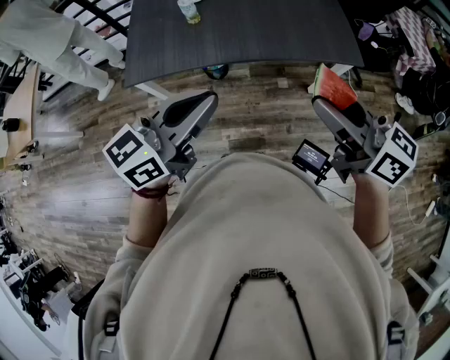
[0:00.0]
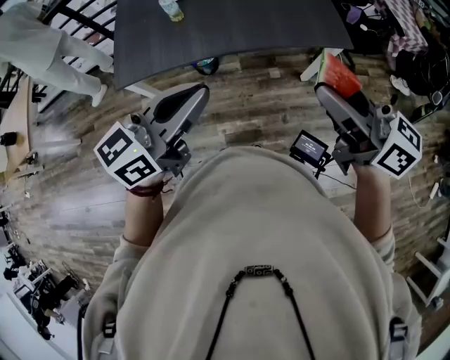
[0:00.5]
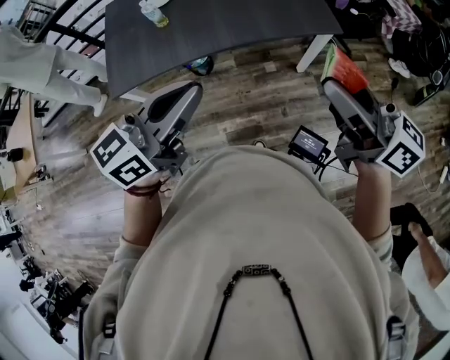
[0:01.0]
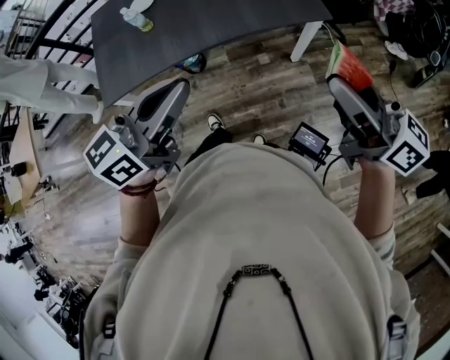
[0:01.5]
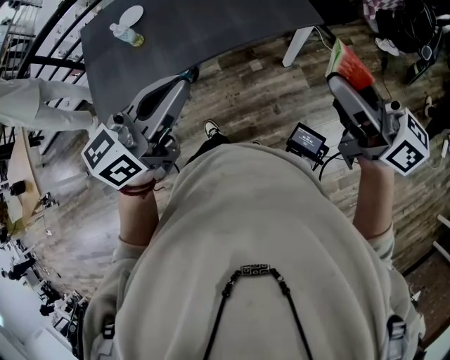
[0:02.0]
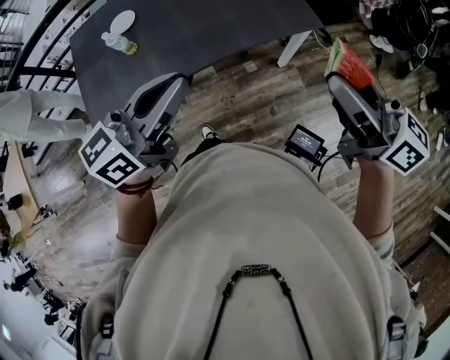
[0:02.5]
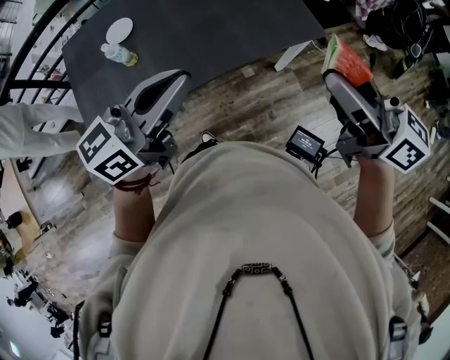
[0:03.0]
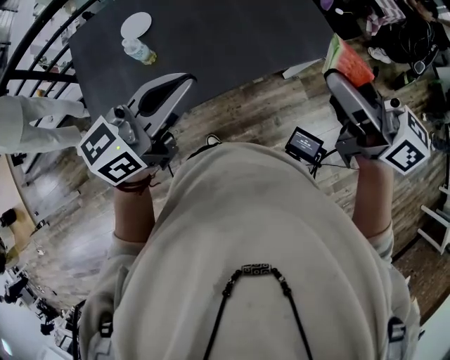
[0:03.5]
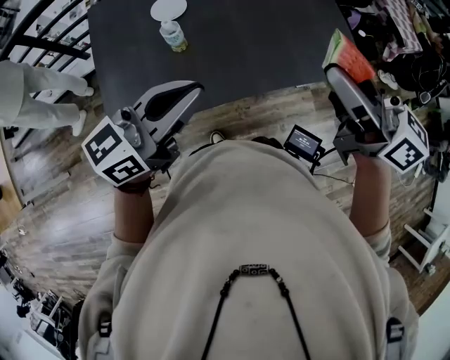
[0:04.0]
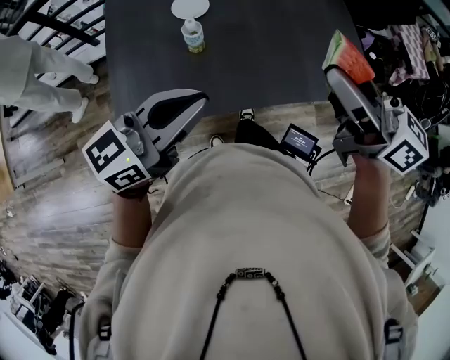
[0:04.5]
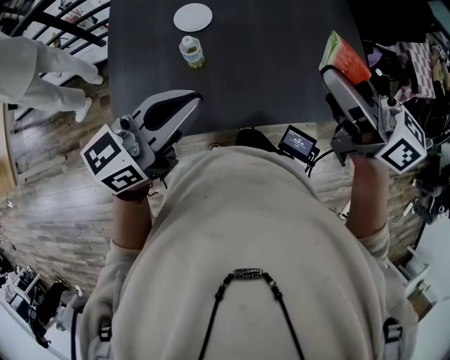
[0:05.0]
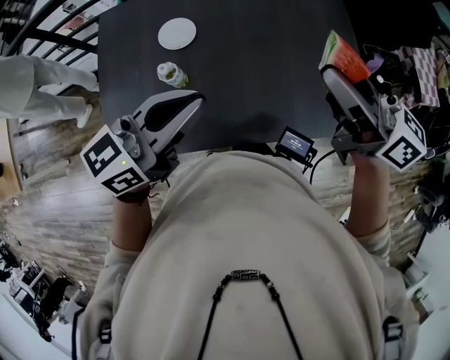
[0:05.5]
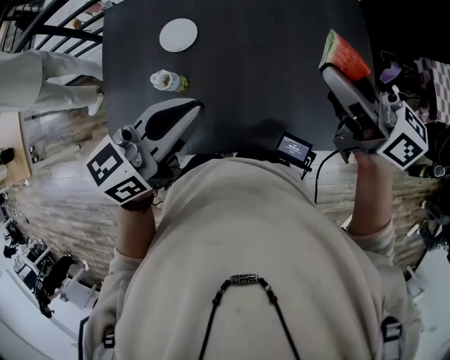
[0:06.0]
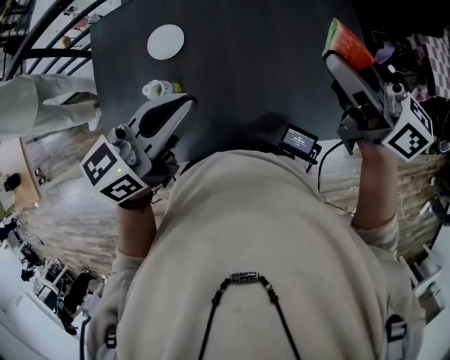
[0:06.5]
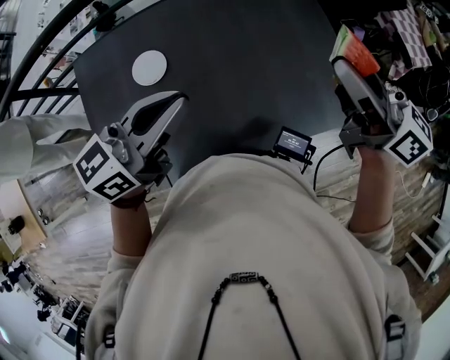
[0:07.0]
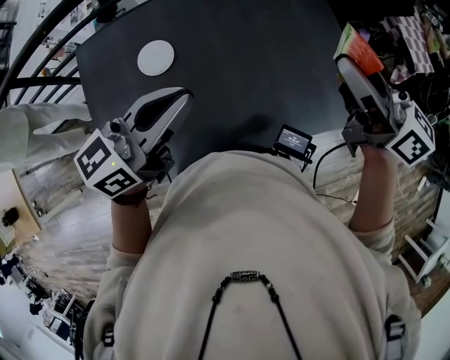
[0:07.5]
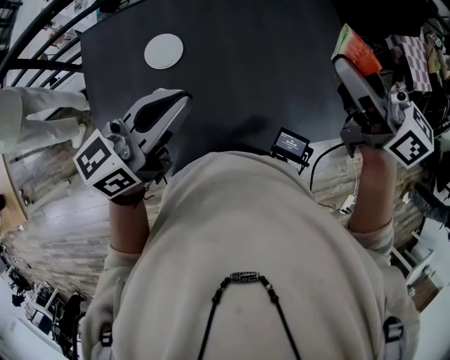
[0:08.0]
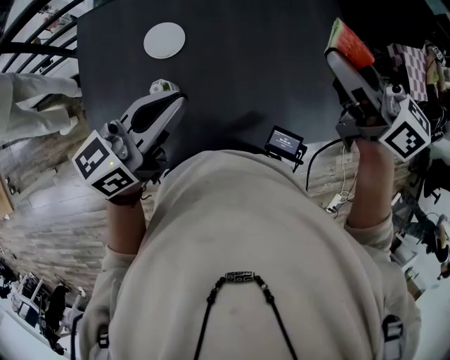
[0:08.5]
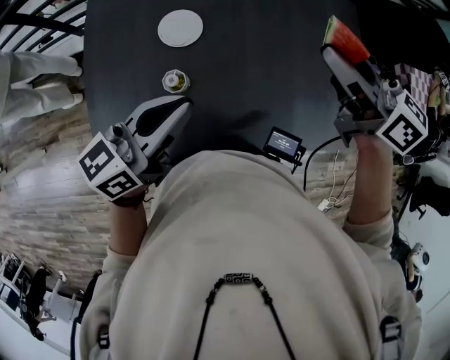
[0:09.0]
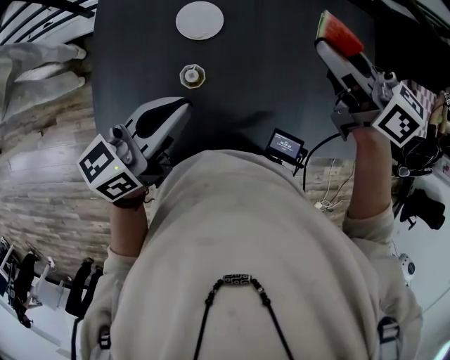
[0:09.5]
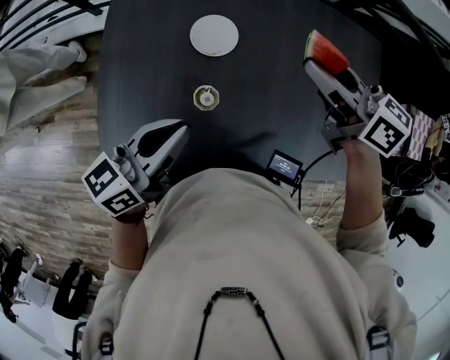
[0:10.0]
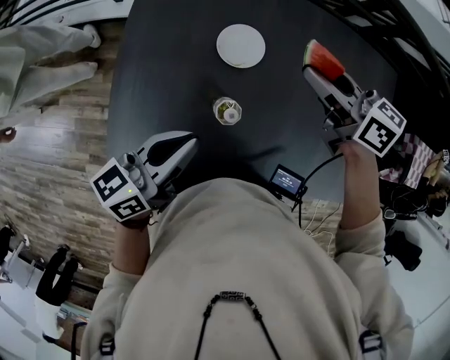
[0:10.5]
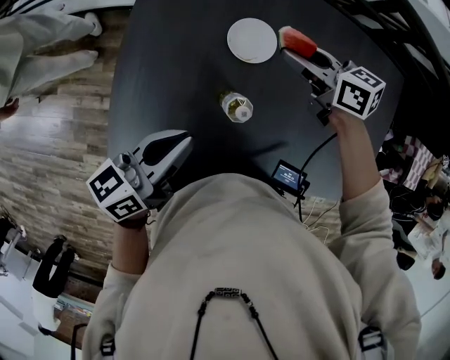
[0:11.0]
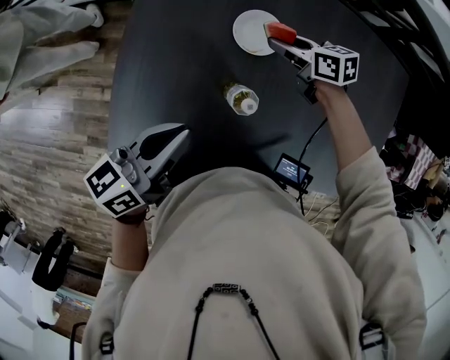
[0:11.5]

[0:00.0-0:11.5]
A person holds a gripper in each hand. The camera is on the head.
0:00.0 to 0:02.0: The right gripper is displaced to the right by some 10 cm; the left gripper travels forward and to the right by about 10 cm.
0:02.0 to 0:04.0: The grippers both shift to the left and forward by roughly 20 cm.
0:04.0 to 0:06.0: The right gripper moves forward, some 20 cm; the left gripper is displaced forward and to the right by approximately 15 cm.
0:06.0 to 0:07.5: The left gripper ends up some 5 cm from where it was.
0:07.5 to 0:09.5: The left gripper heads to the left and downward, covering about 10 cm, and swivels about 20 degrees, while the right gripper travels to the left, downward and forward by roughly 20 cm, and changes its angle by about 30 degrees.
0:09.5 to 0:11.5: The left gripper shifts approximately 10 cm to the left and downward. Meanwhile the right gripper heads downward and to the left, covering approximately 30 cm, and turns by some 30 degrees.

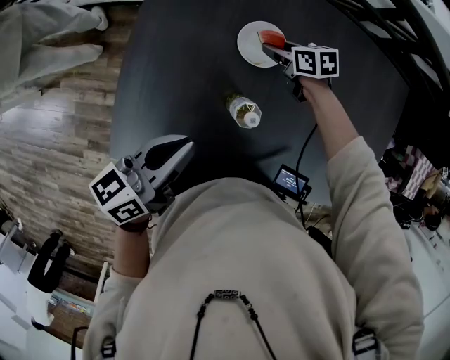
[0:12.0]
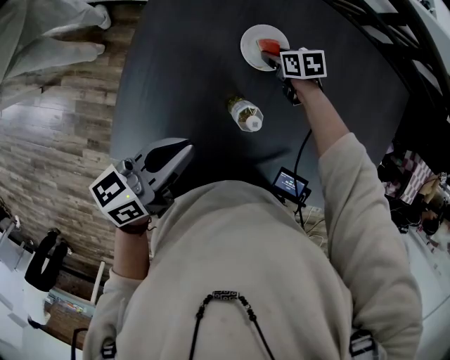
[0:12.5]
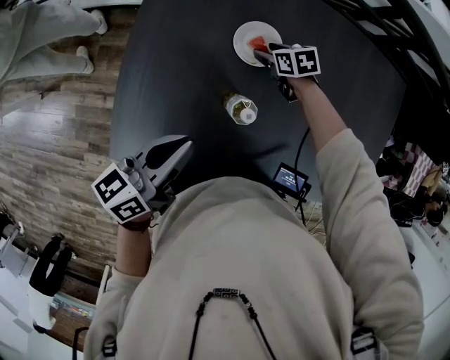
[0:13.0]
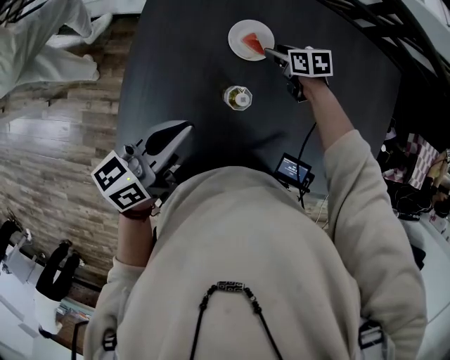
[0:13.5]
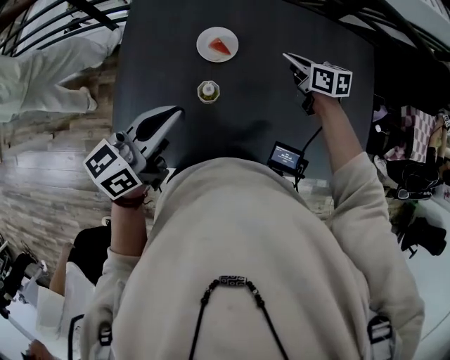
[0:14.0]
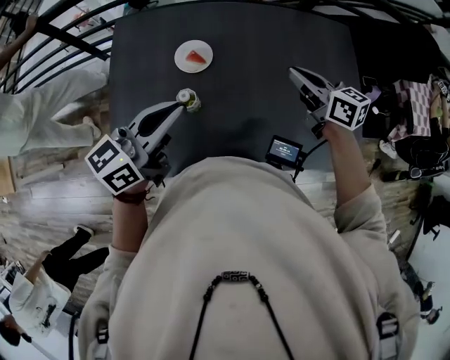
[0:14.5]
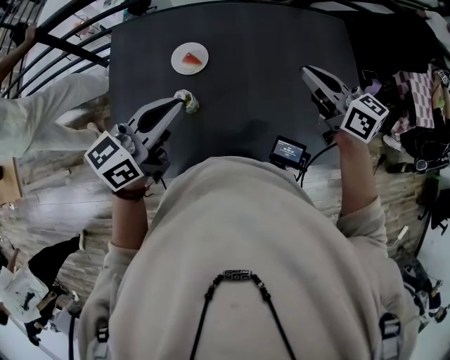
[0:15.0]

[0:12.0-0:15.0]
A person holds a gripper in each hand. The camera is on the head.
0:12.0 to 0:13.5: The right gripper changes place by some 5 cm.
0:13.5 to 0:15.0: The right gripper goes roughly 35 cm upward, to the right and backward, tips its fingers upward by approximately 40 degrees, and closes, while the left gripper shifts some 15 cm to the right and upward, and turns by some 20 degrees.

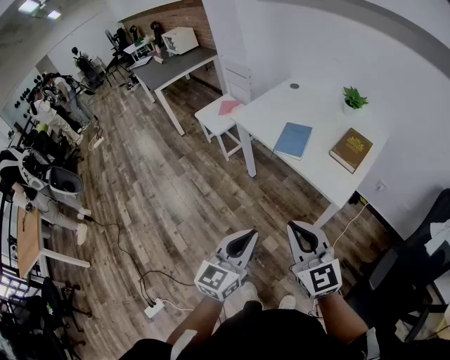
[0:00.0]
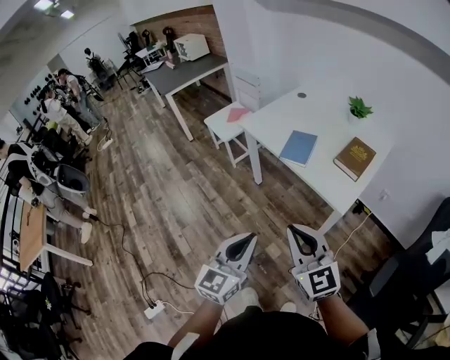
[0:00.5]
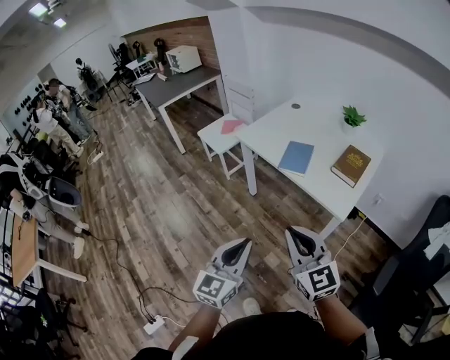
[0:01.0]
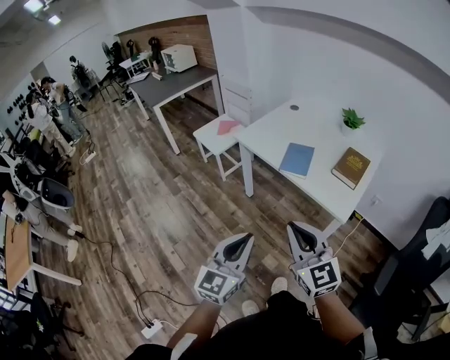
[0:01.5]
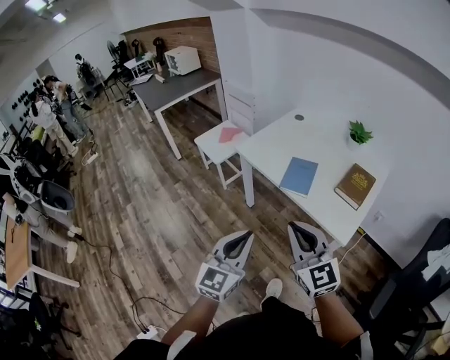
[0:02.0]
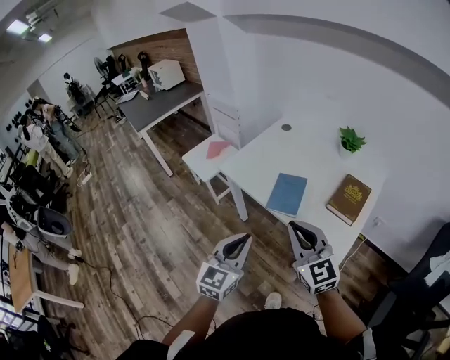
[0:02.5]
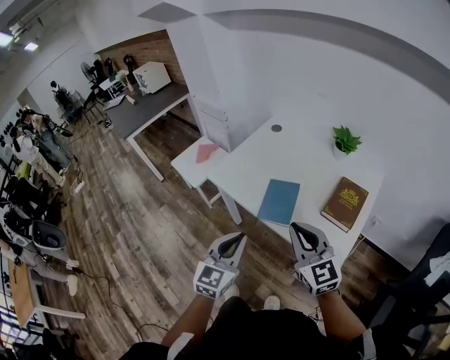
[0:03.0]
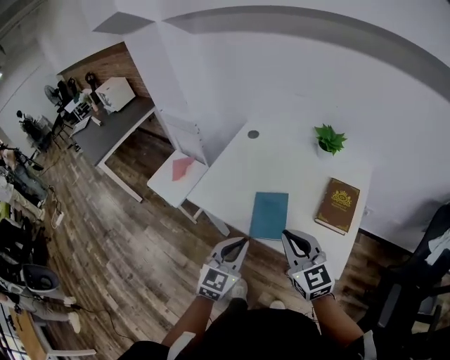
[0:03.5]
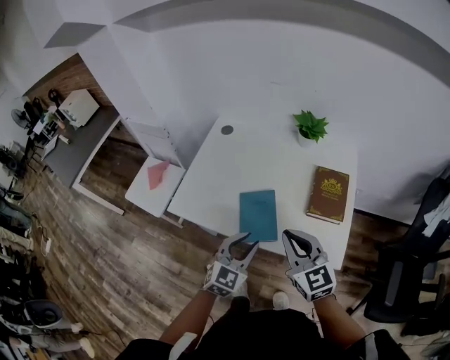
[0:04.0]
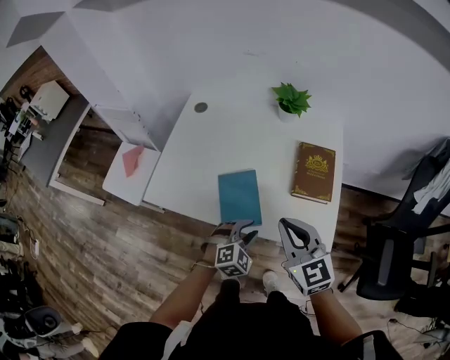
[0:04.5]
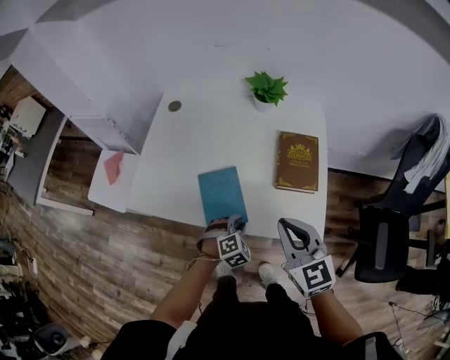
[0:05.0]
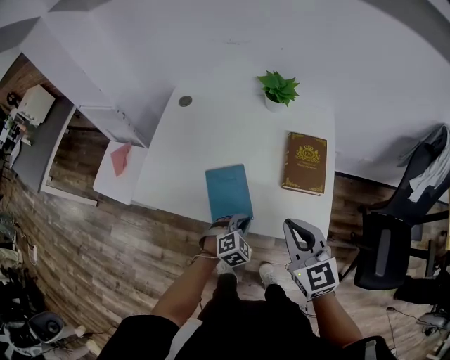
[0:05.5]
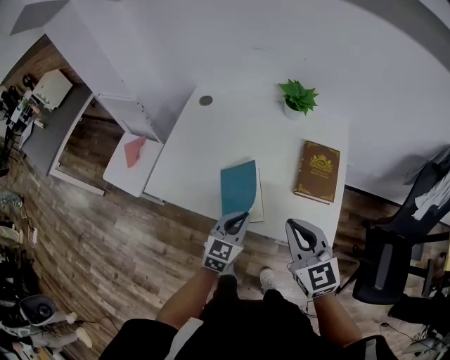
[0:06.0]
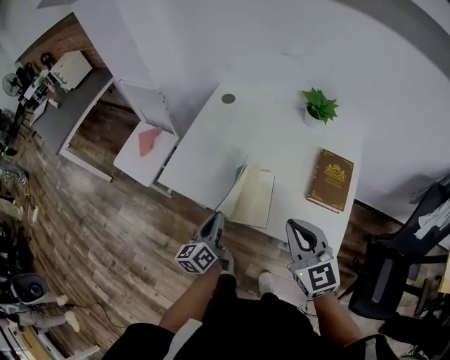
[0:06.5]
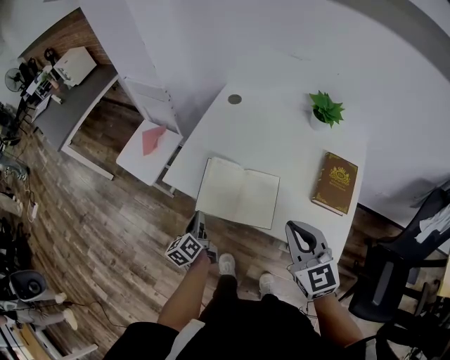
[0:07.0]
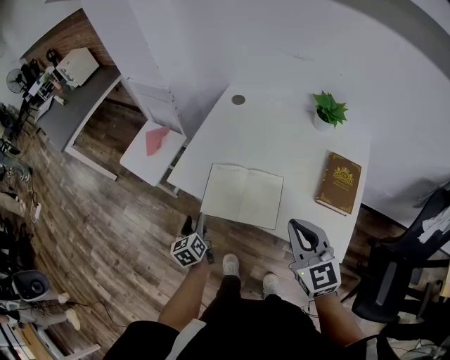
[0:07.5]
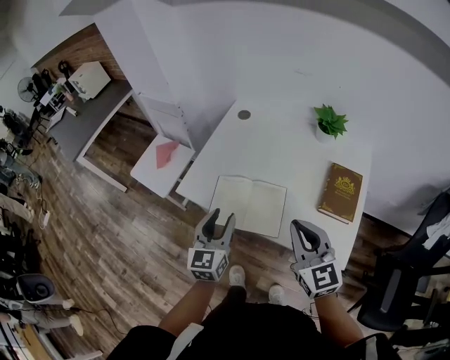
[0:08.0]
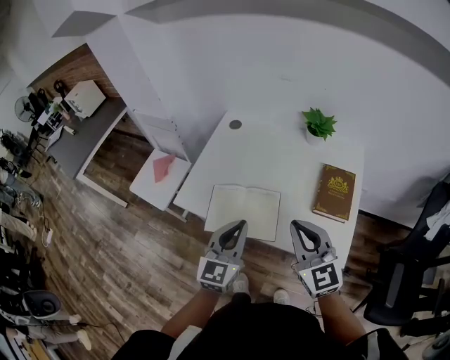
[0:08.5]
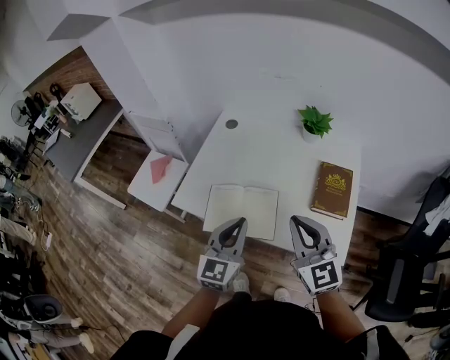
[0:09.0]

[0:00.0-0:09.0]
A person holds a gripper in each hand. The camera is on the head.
0:00.0 to 0:02.0: The right gripper moves forward, about 10 cm. The left gripper travels forward and to the left by roughly 15 cm.
0:02.0 to 0:04.5: The left gripper shifts by some 40 cm, tips its fingers downward by roughly 40 degrees, and opens up, while the right gripper changes place by about 35 cm, and changes its angle by some 40 degrees.
0:04.5 to 0:07.0: The right gripper shifts by approximately 5 cm. Meanwhile the left gripper goes up and down, roughly 10 cm each way, reversing 2 times, twists approximately 100 degrees counterclockwise, seen from behind, and closes up.
0:07.0 to 0:09.0: The right gripper travels upward by about 5 cm. The left gripper shifts some 25 cm upward and to the right, rolls clockwise, seen from behind, by about 50 degrees, and opens, then closes once more.

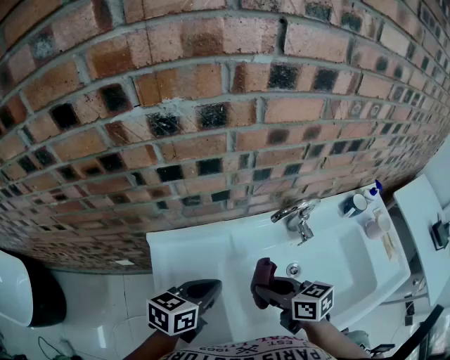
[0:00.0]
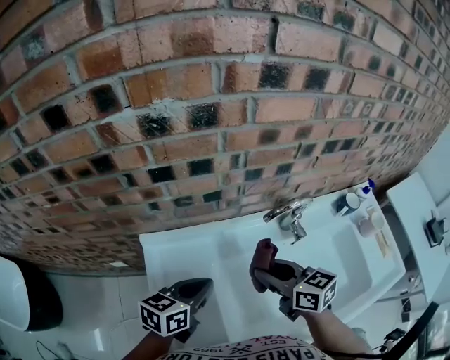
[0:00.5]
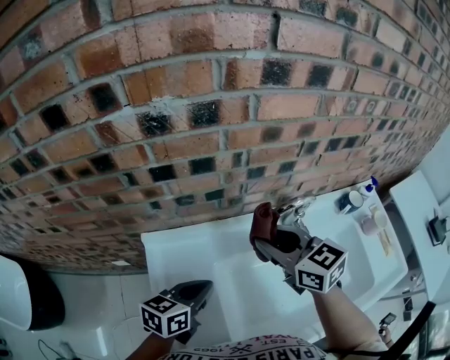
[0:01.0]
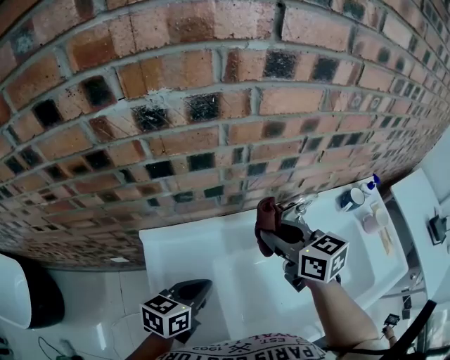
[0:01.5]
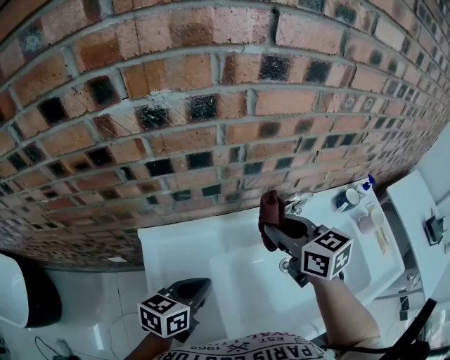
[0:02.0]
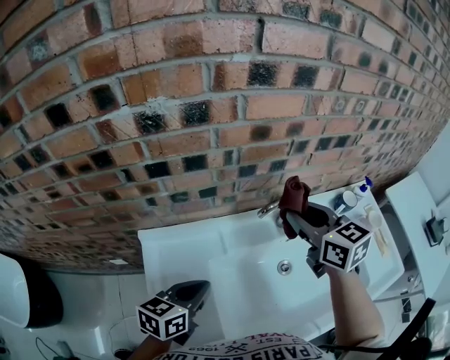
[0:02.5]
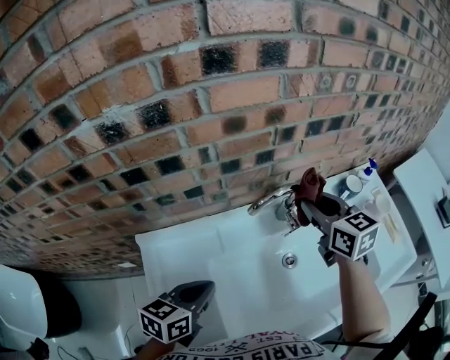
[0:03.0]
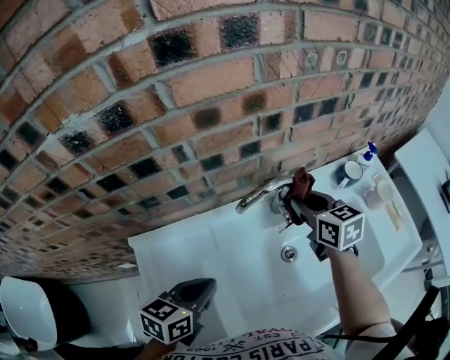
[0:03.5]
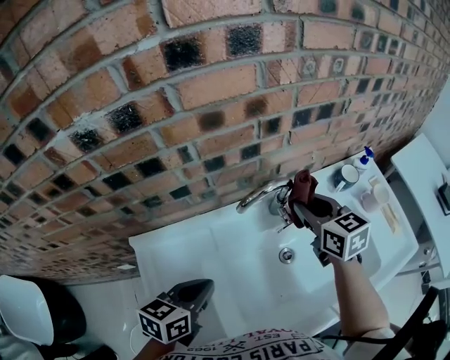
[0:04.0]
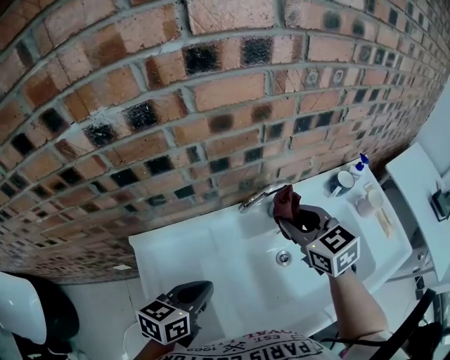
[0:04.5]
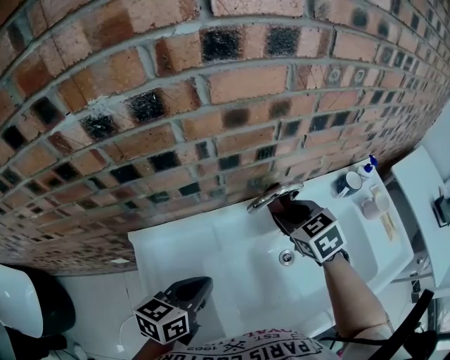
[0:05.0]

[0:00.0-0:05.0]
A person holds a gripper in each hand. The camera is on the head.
0:00.0 to 0:02.5: The right gripper heads upward, forward and to the right, covering about 25 cm, and swivels some 30 degrees.
0:02.5 to 0:05.0: The right gripper swings up and down, roughly 15 cm each way, with 2 reversals, and rotates about 30 degrees.
